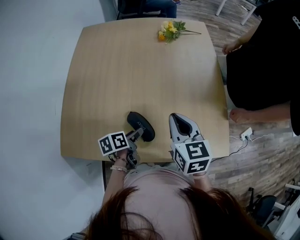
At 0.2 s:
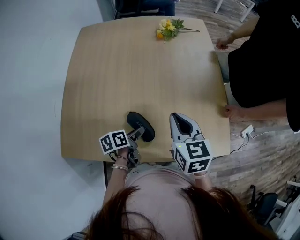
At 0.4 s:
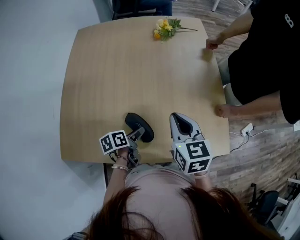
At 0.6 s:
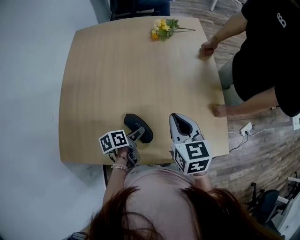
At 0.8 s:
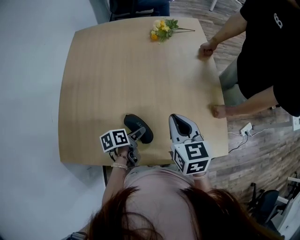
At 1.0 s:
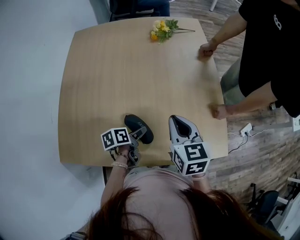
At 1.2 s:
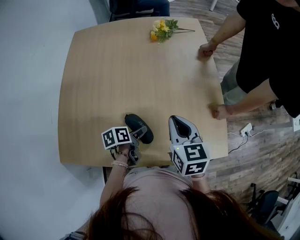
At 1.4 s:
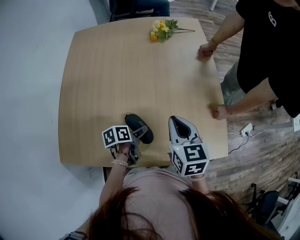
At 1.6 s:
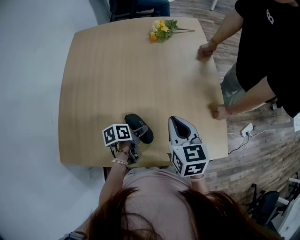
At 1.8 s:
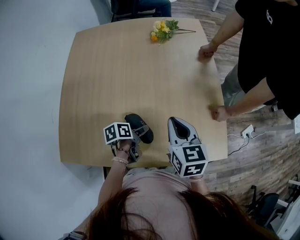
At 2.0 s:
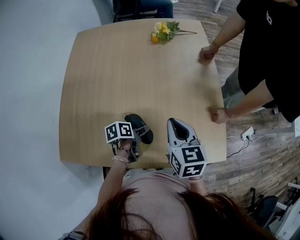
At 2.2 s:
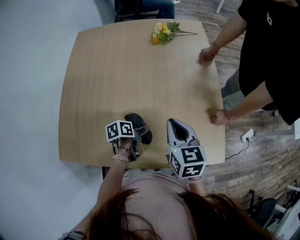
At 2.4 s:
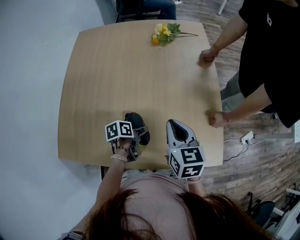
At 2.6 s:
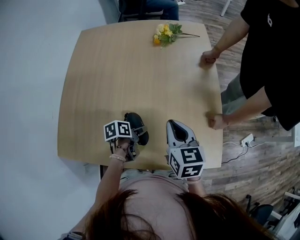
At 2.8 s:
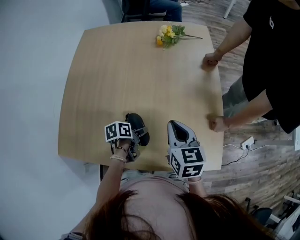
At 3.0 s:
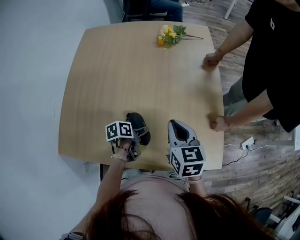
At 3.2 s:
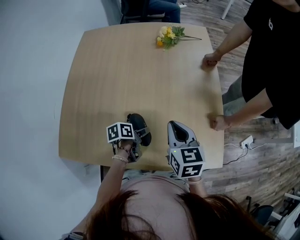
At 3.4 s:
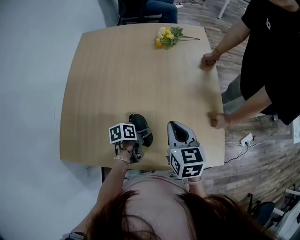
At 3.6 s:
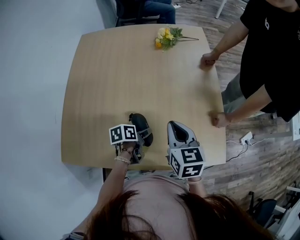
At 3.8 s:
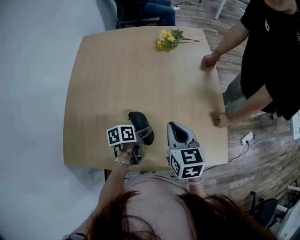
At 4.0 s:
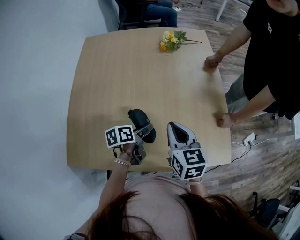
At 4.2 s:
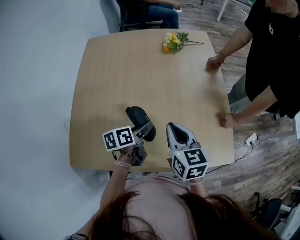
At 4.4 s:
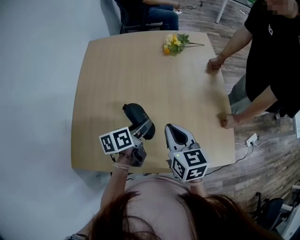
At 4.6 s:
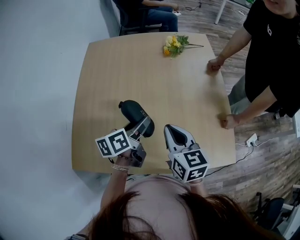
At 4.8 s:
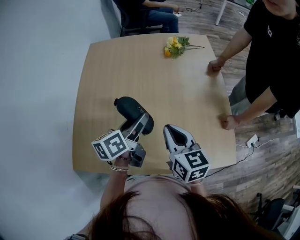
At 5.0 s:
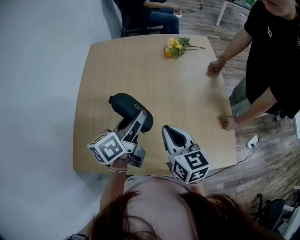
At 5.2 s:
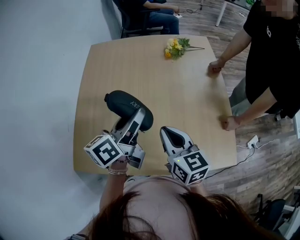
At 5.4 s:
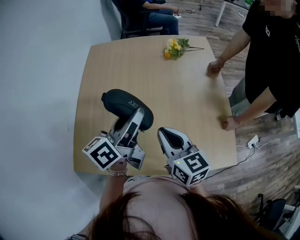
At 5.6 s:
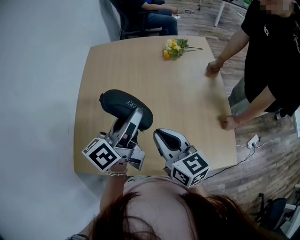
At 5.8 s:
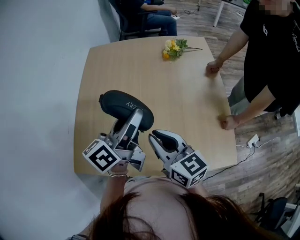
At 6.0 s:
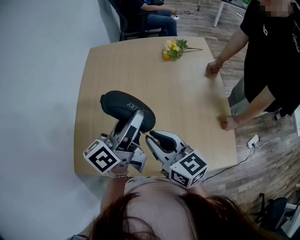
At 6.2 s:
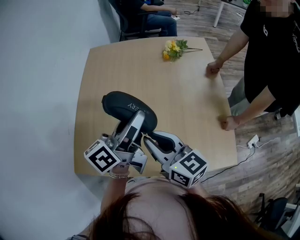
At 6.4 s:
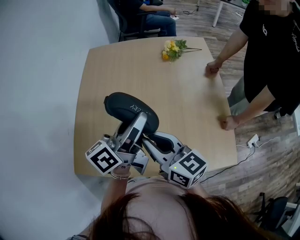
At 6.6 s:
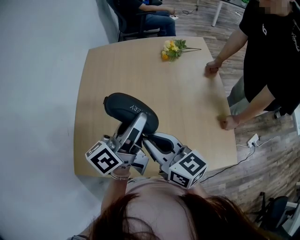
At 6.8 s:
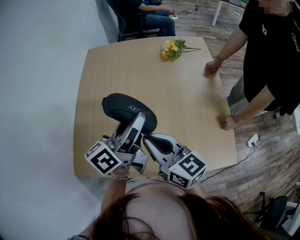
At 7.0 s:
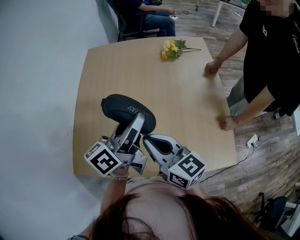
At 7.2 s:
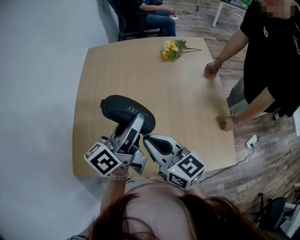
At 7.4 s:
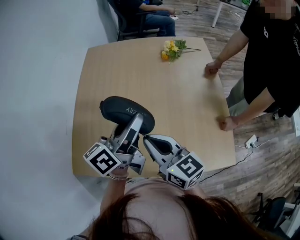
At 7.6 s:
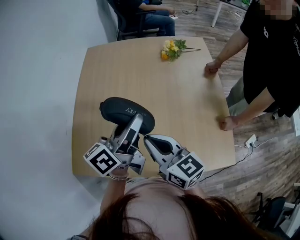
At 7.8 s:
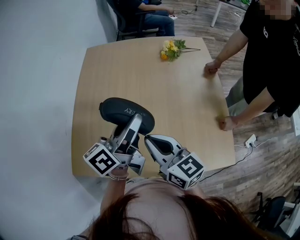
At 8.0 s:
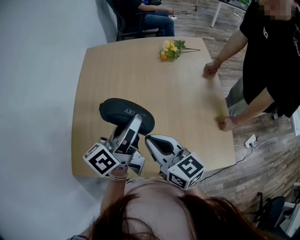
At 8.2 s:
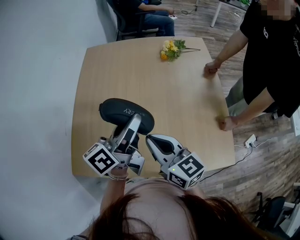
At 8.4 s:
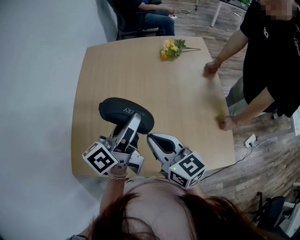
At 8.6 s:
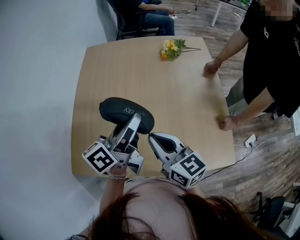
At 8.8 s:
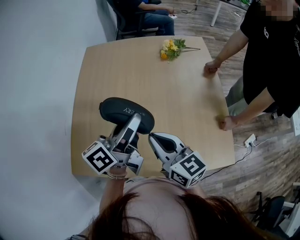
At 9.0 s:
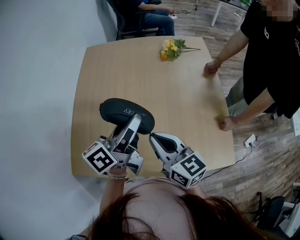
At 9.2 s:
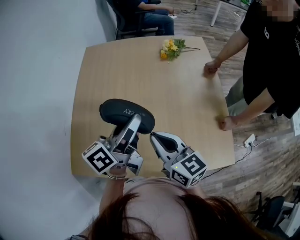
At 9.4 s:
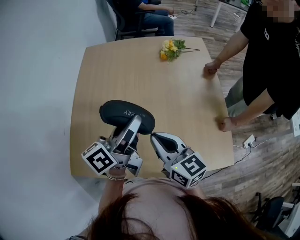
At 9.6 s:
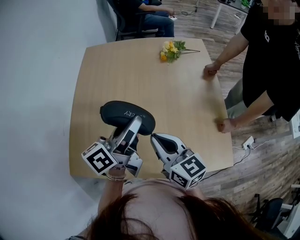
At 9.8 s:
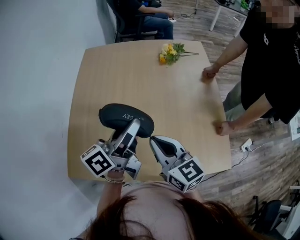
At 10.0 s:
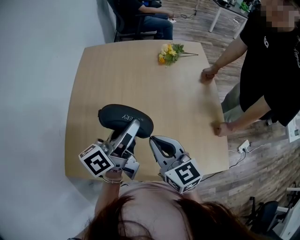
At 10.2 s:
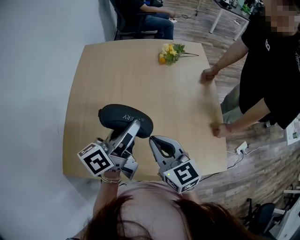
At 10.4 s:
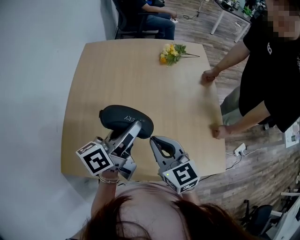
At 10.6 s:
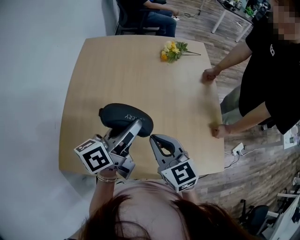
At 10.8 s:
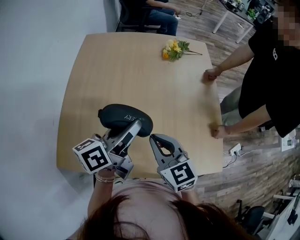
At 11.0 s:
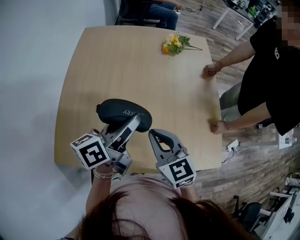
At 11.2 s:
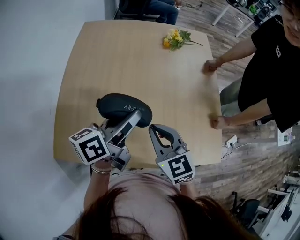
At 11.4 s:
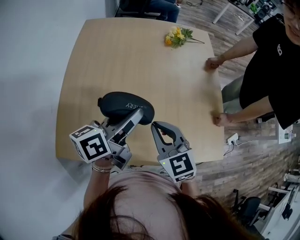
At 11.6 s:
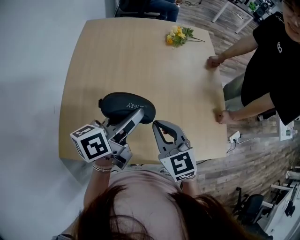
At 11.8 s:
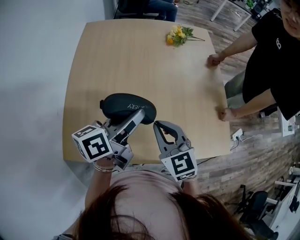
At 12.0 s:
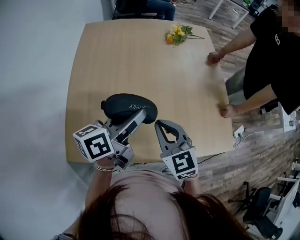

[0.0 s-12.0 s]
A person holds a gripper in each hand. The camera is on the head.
0.0 to 1.6 s: The left gripper shifts by approximately 5 cm.
1.6 to 3.0 s: There are only small adjustments of the grippers.
3.0 to 4.4 s: The left gripper moves upward and to the left, about 15 cm, and rotates roughly 30 degrees, while the right gripper goes about 10 cm to the left.
4.4 to 6.0 s: The left gripper goes some 20 cm upward, and angles its fingers upward, by approximately 40 degrees. Meanwhile the right gripper is displaced to the left and upward by about 10 cm, and swivels approximately 20 degrees.
6.0 to 10.4 s: The grippers make only small movements.
10.4 to 12.0 s: Both grippers move to the left, some 5 cm.

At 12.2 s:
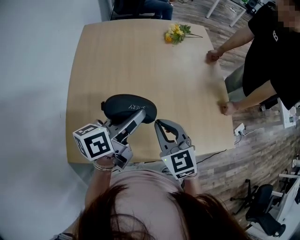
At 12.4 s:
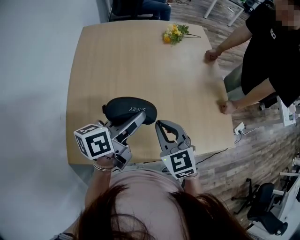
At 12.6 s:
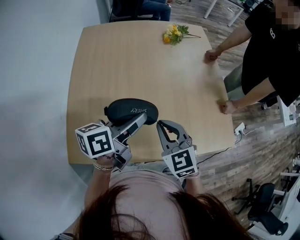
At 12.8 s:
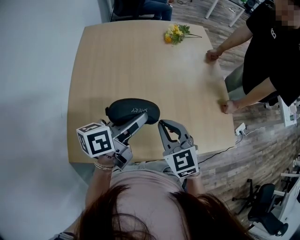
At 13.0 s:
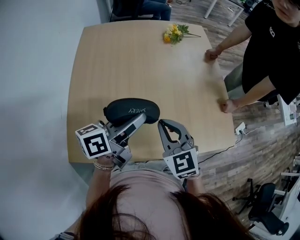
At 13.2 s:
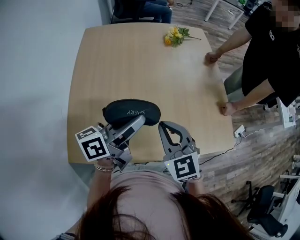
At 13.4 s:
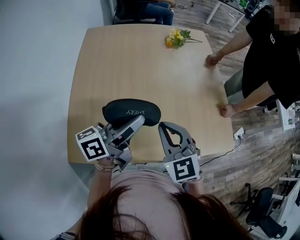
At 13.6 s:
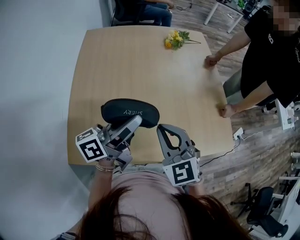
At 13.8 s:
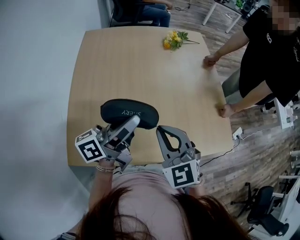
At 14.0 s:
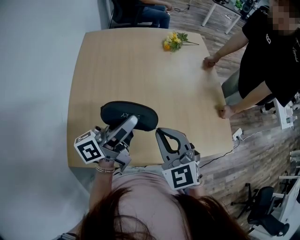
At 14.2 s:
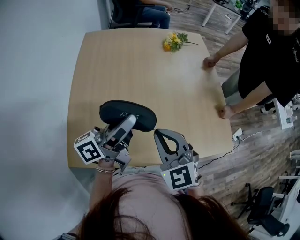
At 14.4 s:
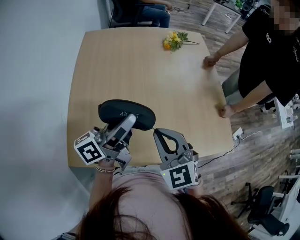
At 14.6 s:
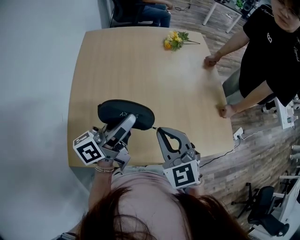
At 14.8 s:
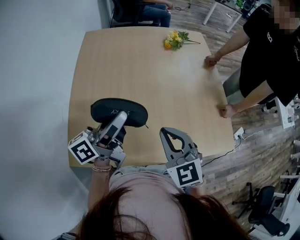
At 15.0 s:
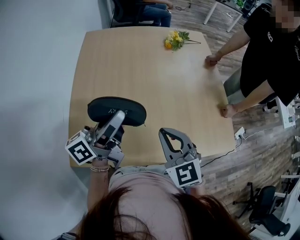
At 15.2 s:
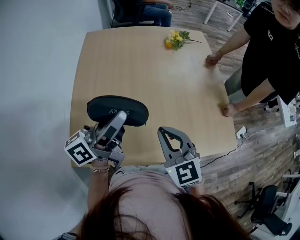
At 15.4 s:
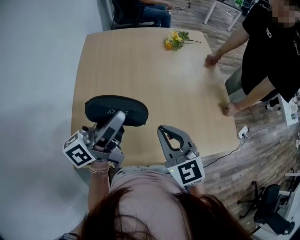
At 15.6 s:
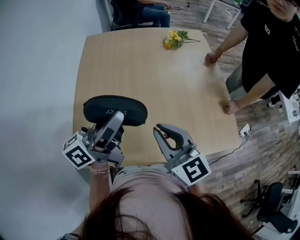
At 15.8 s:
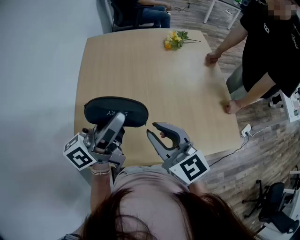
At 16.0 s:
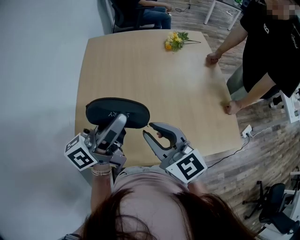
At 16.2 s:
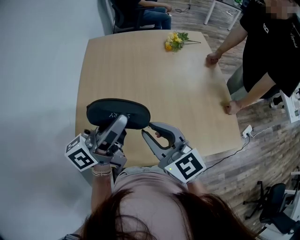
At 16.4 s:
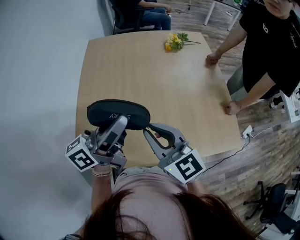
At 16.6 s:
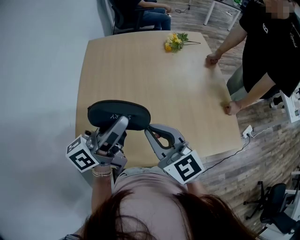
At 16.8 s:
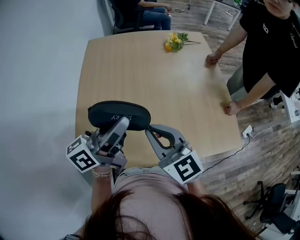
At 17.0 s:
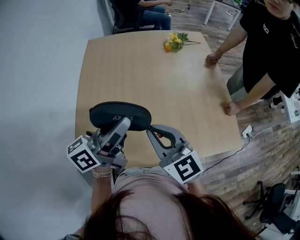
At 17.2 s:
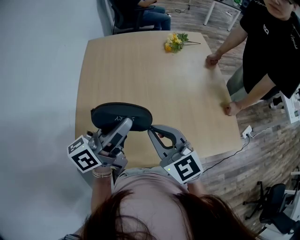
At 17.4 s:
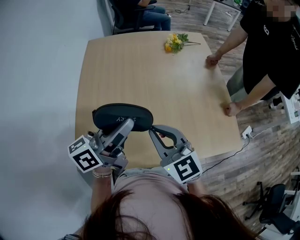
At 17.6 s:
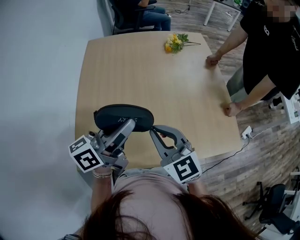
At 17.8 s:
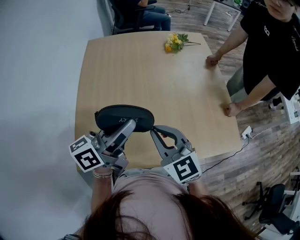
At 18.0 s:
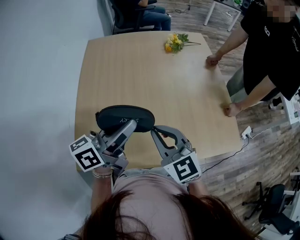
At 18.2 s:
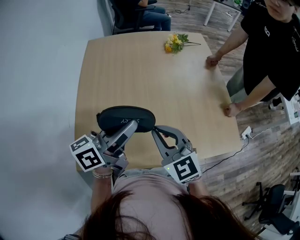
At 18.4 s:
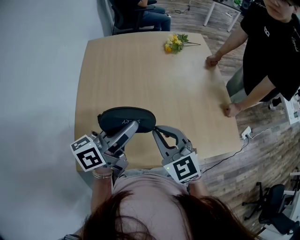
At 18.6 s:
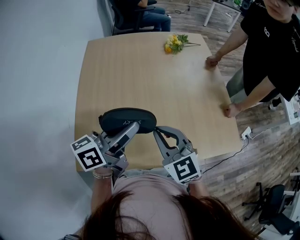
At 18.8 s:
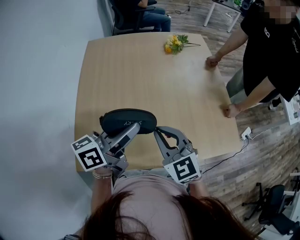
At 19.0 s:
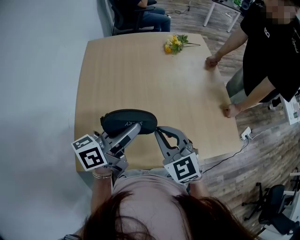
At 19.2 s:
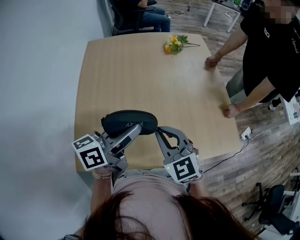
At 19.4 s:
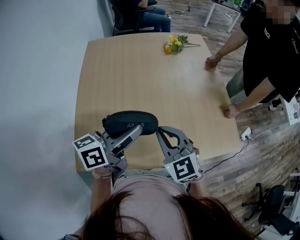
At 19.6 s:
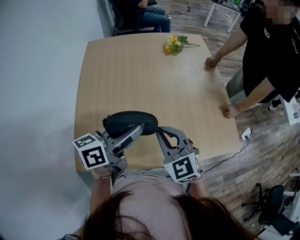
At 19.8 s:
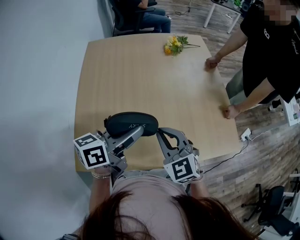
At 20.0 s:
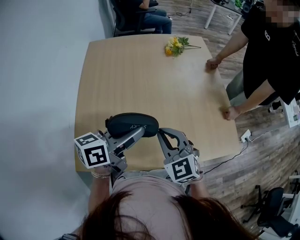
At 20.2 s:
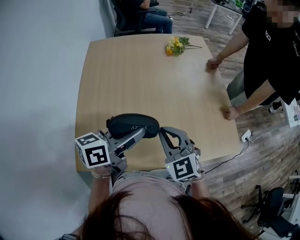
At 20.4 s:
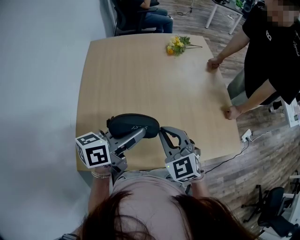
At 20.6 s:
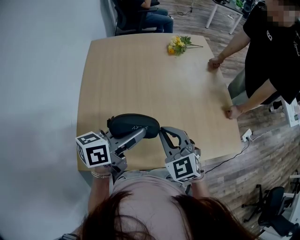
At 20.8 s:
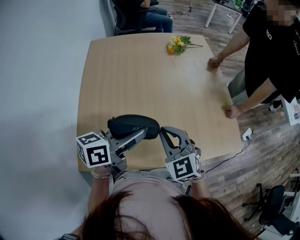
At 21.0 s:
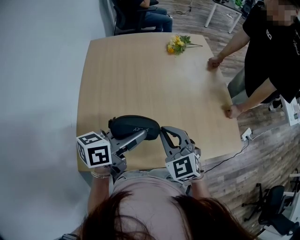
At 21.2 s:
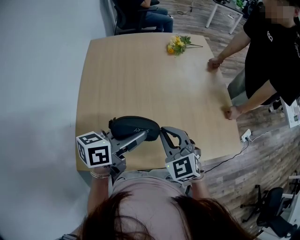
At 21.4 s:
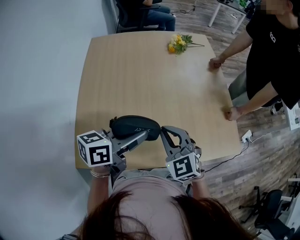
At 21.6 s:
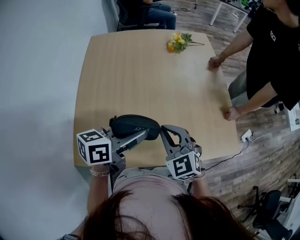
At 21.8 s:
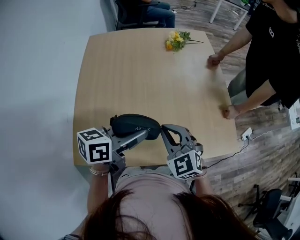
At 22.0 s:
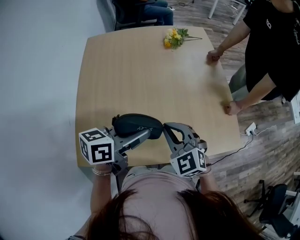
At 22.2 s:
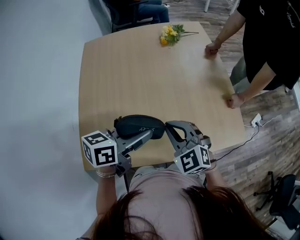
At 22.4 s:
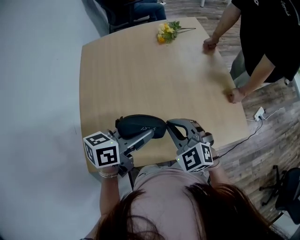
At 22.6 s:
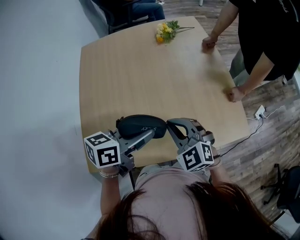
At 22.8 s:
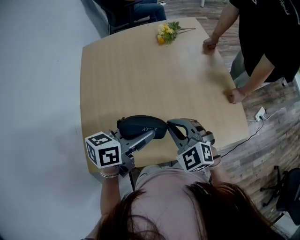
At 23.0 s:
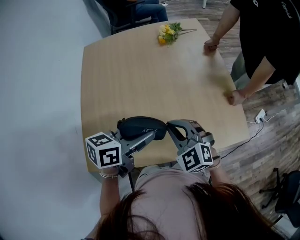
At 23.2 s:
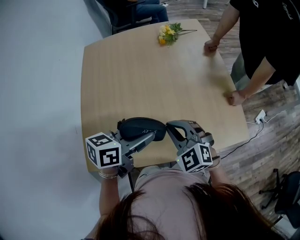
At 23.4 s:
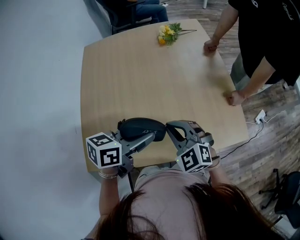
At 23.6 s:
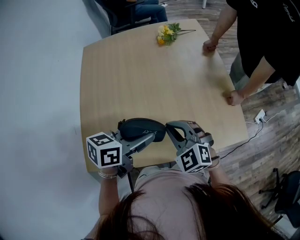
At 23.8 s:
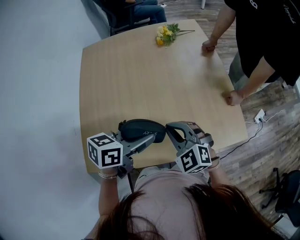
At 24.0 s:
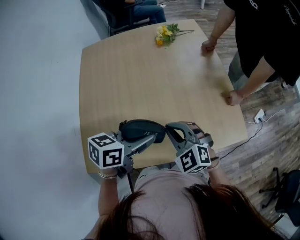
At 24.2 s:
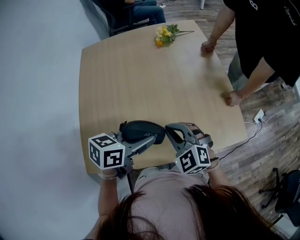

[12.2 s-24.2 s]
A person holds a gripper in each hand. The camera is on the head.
12.2 to 13.8 s: The left gripper ends up approximately 5 cm from where it was, and rotates approximately 20 degrees. The right gripper changes place by approximately 5 cm.
13.8 to 15.2 s: The grippers stay close to where they were, moving slightly.
15.2 to 16.6 s: The right gripper moves some 5 cm, and changes its angle by roughly 20 degrees.
16.6 to 18.2 s: The grippers make only small movements.
18.2 to 19.8 s: The grippers stay close to where they were, moving slightly.
19.8 to 21.2 s: The grippers move only a little.
21.2 to 22.6 s: Both grippers move to the right, roughly 5 cm.
22.6 to 24.2 s: The grippers make only small movements.
